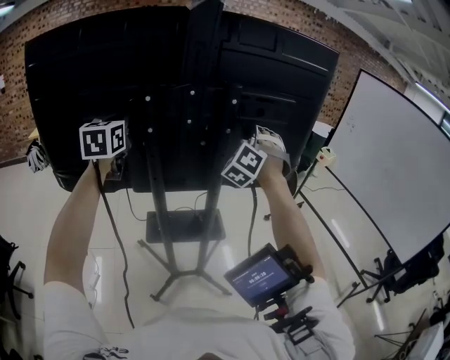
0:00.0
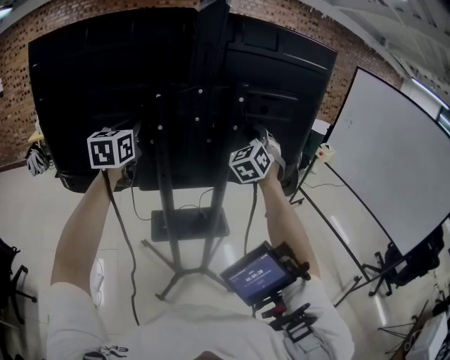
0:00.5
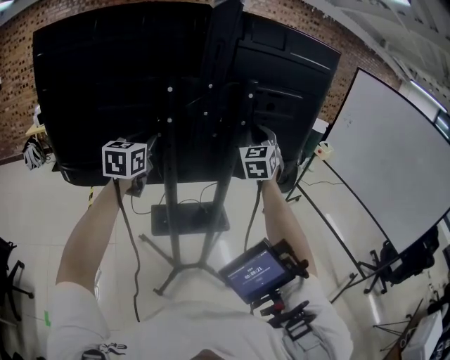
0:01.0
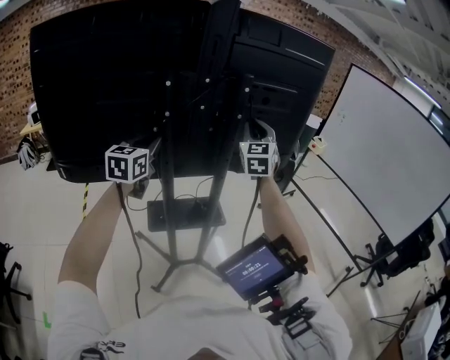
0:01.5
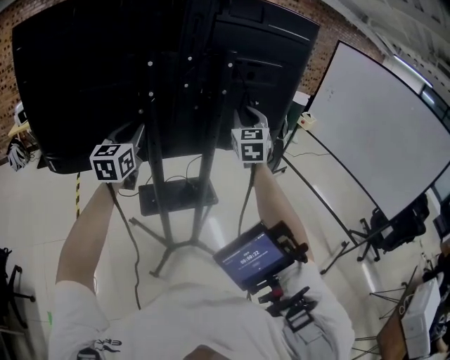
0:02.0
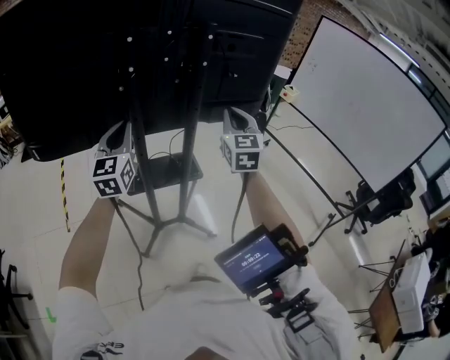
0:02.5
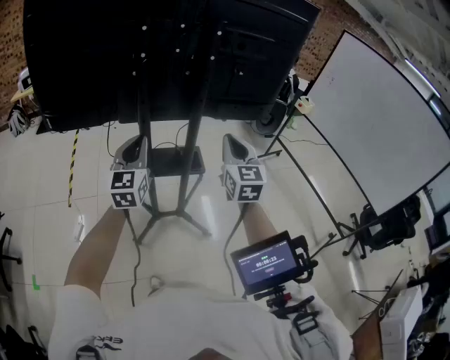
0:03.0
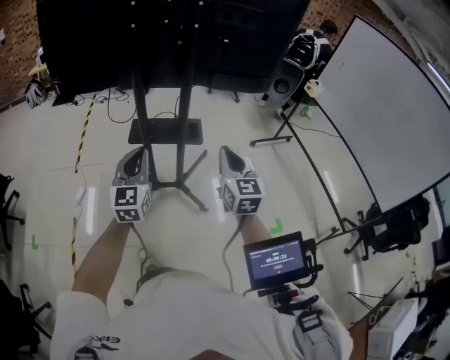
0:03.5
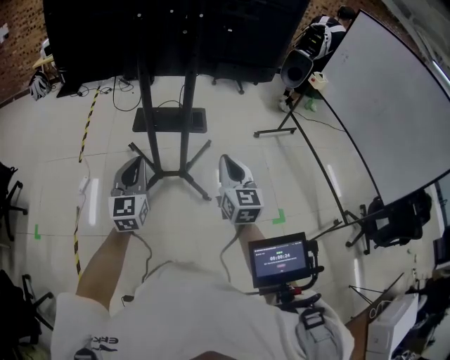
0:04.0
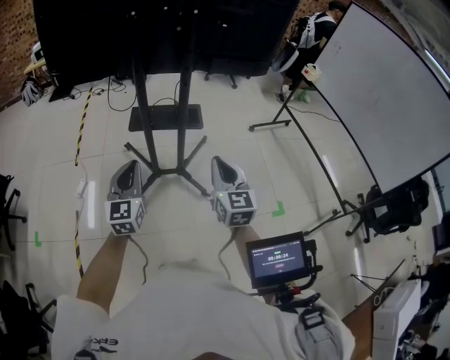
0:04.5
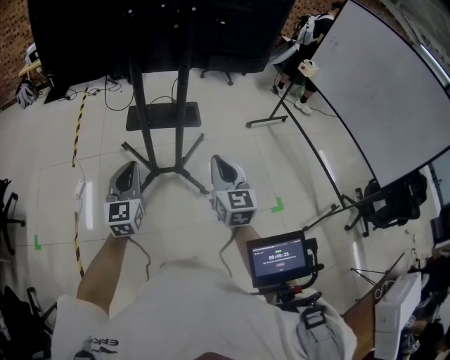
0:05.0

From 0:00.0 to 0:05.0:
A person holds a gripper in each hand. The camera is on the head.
From 0:00.0 to 0:02.5: The right gripper is displaced backward and downward by approximately 15 cm, and rolls clockwise, seen from behind, by approximately 60 degrees. Meanwhile the left gripper moves downward, backward and to the right, roughly 20 cm.
From 0:02.5 to 0:05.0: Both grippers travel together backward and downward, approximately 35 cm. The right gripper swivels about 30 degrees.

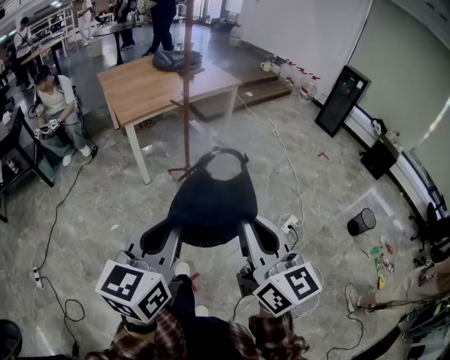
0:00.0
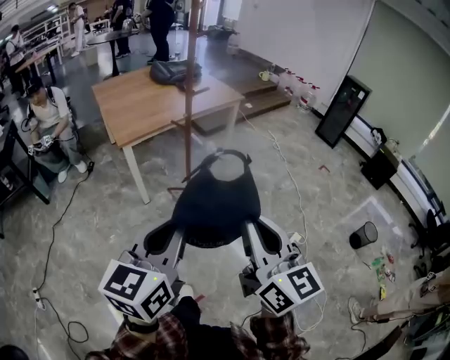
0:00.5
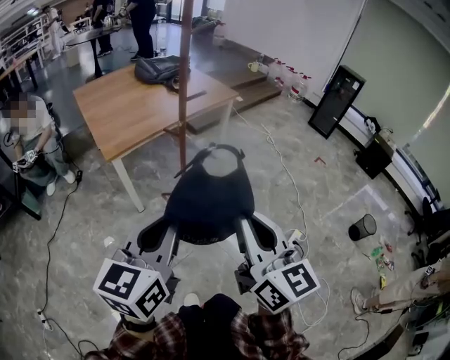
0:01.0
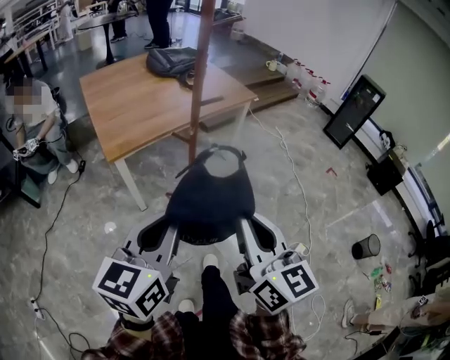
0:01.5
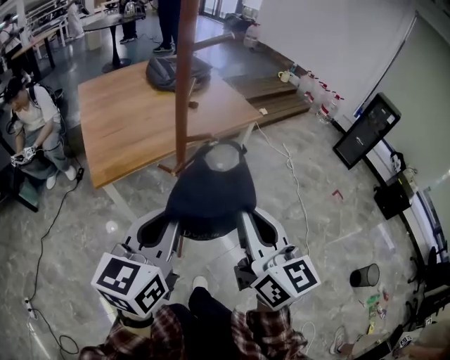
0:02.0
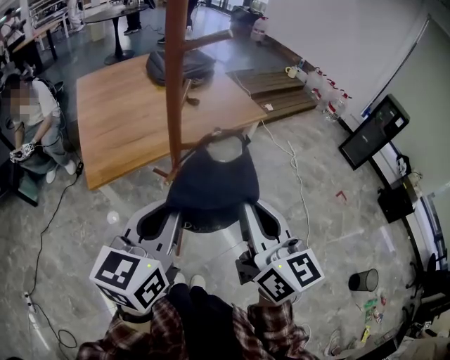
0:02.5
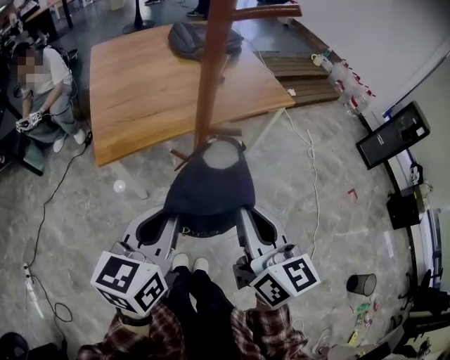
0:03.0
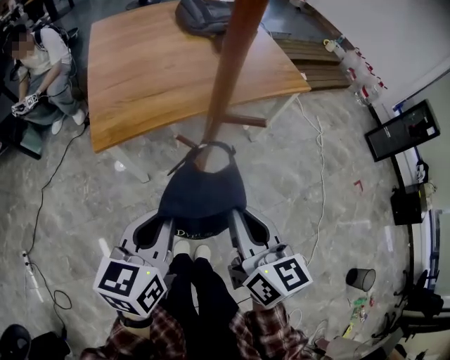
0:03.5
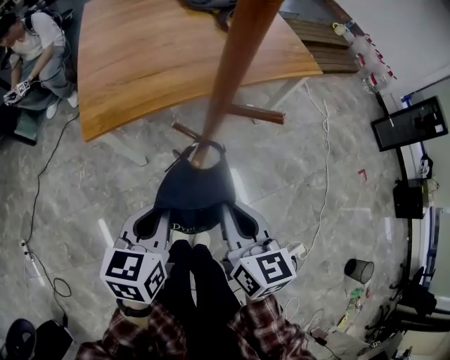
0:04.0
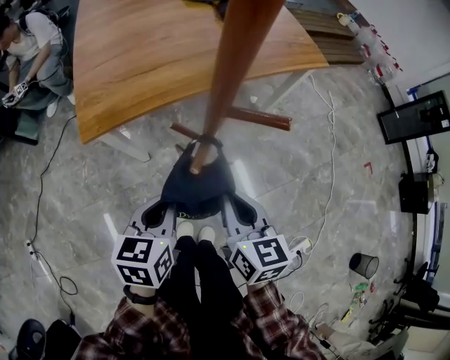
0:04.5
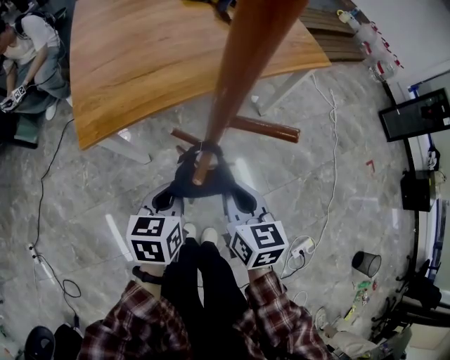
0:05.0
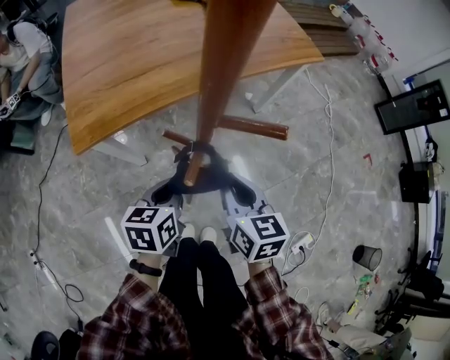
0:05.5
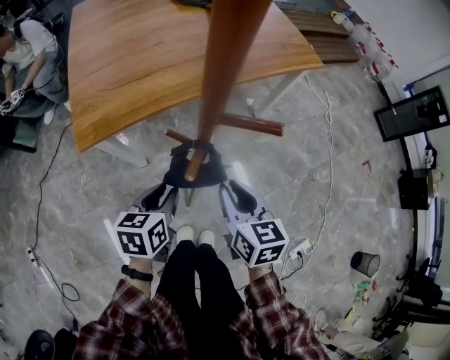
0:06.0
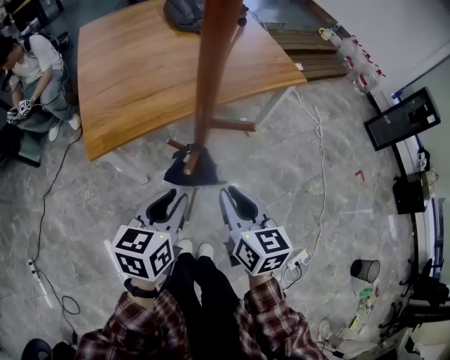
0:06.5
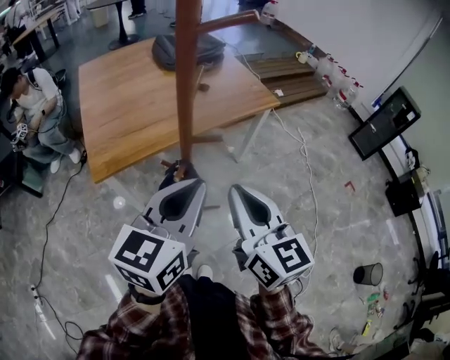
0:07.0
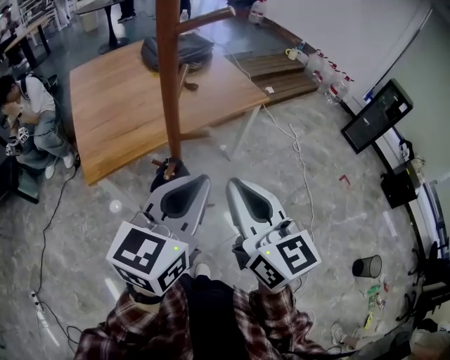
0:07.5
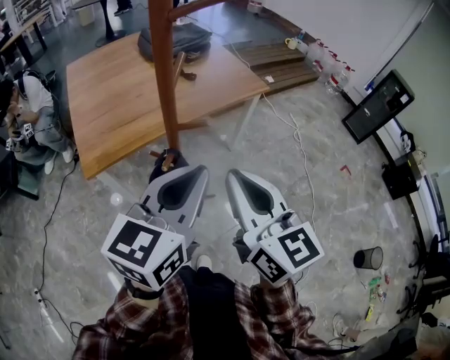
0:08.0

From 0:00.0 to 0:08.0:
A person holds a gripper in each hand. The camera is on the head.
From 0:00.0 to 0:02.0: Both grippers are carried forward, approximately 50 cm.
From 0:02.0 to 0:04.0: The two grippers go roughly 25 cm downward and forward. The left gripper swivels approximately 30 degrees. The right gripper changes its angle by roughly 30 degrees.
From 0:04.0 to 0:06.0: The grippers both shift downward and forward by some 10 cm. The left gripper opens up.
From 0:06.0 to 0:08.0: The right gripper travels upward by roughly 30 cm, and rotates some 30 degrees. The left gripper heads upward and to the right, covering approximately 35 cm, tips its fingers upward by approximately 30 degrees, and closes its fingers.

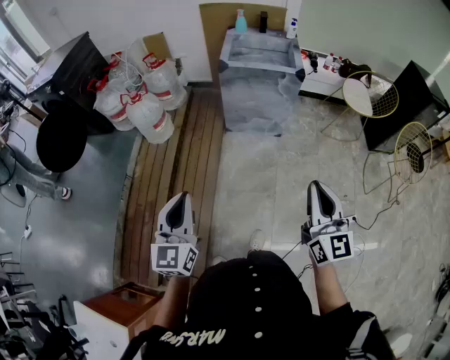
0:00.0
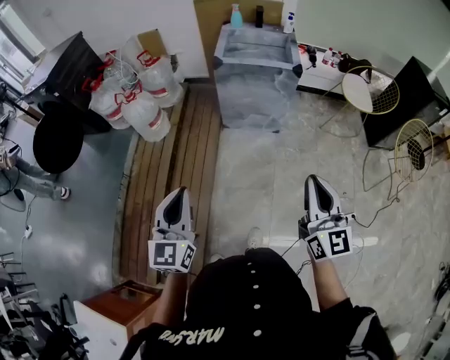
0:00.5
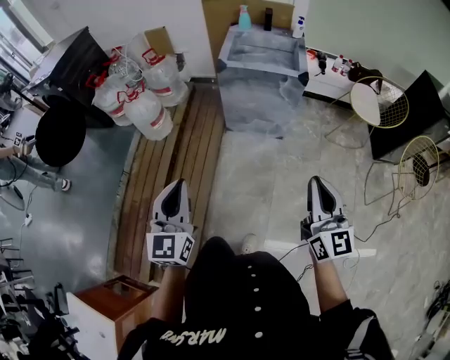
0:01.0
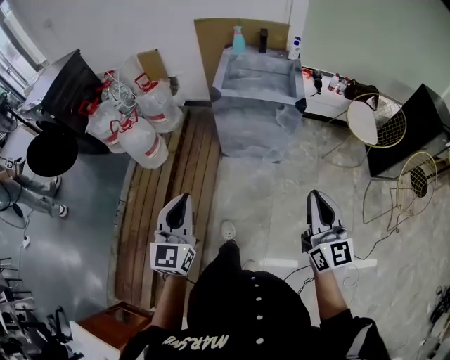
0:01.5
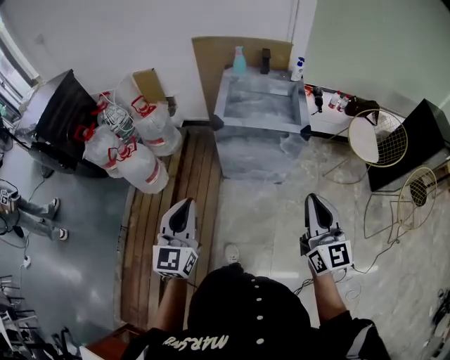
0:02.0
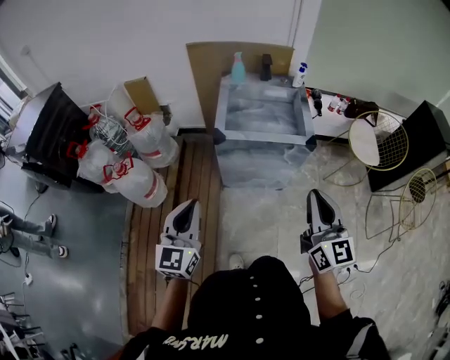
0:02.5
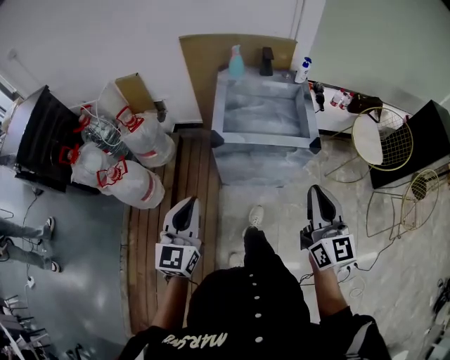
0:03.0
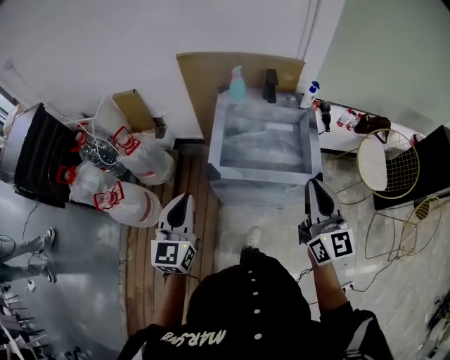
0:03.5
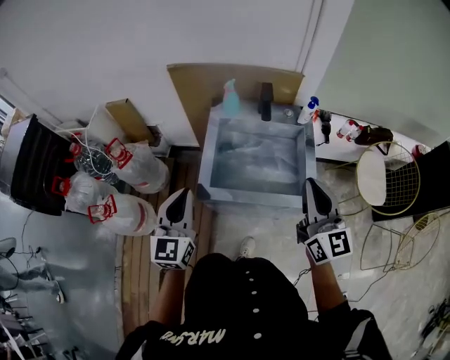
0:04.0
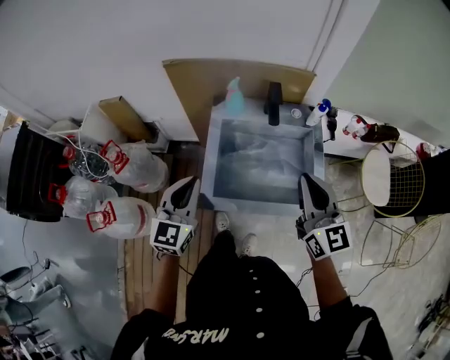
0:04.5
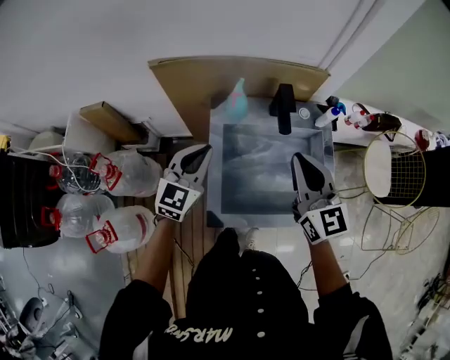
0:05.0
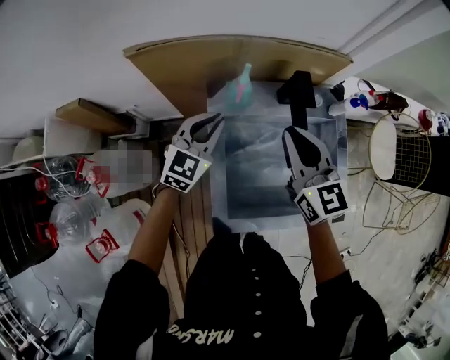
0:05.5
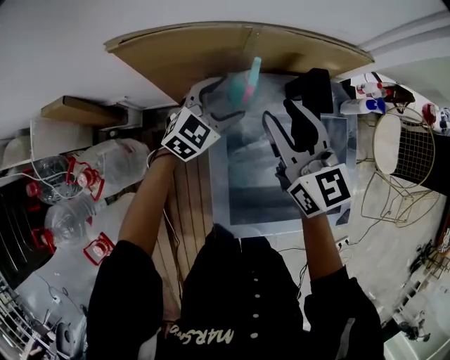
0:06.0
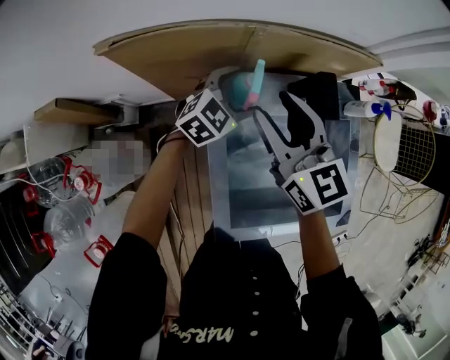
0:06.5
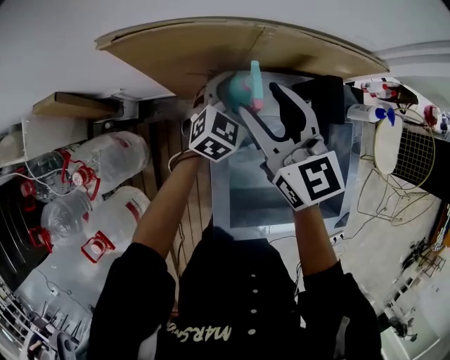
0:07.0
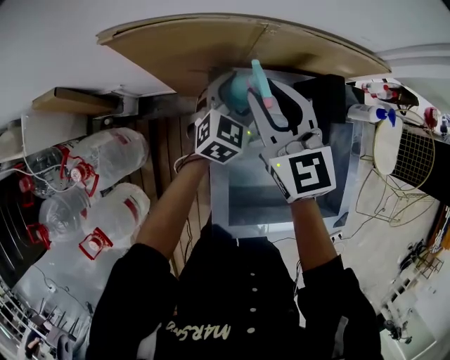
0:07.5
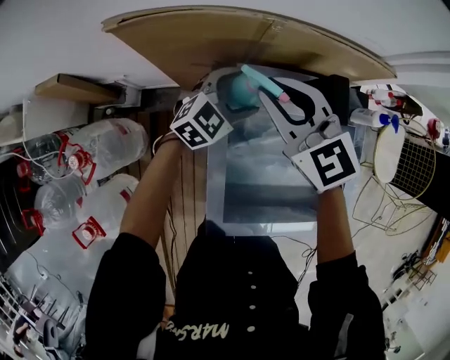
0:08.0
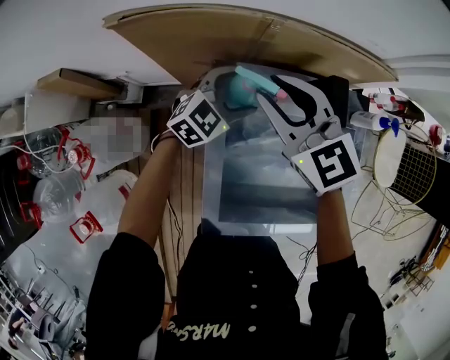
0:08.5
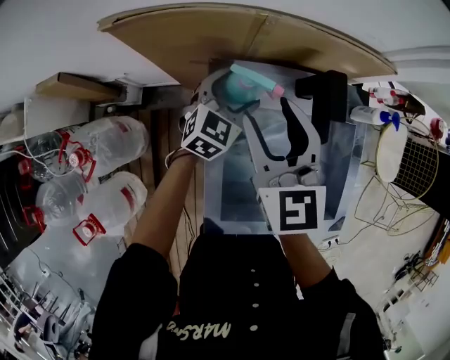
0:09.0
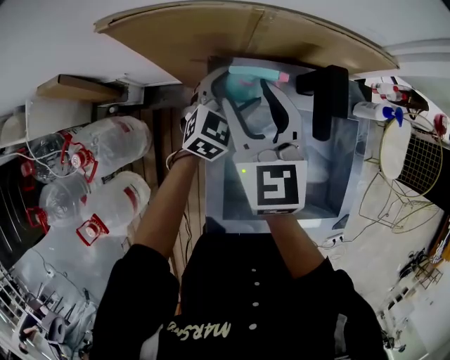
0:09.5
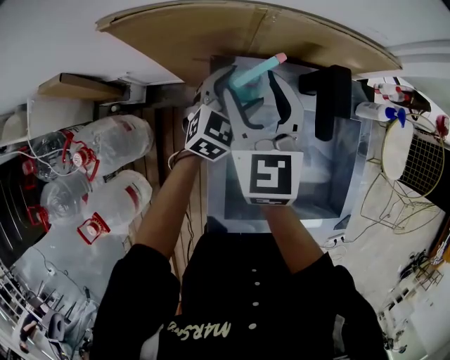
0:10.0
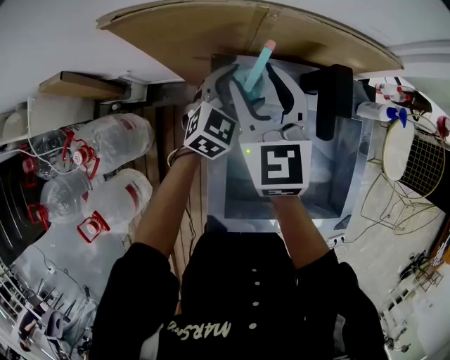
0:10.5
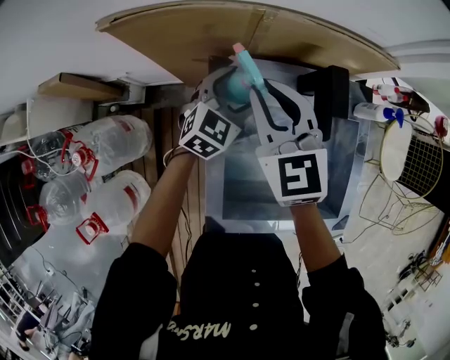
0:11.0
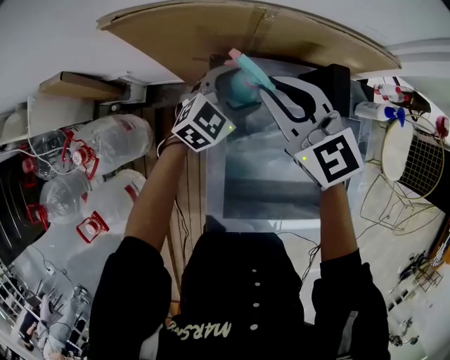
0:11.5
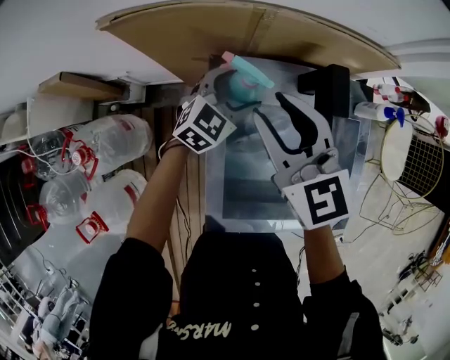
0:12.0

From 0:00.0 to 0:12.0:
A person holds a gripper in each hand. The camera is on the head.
From 0:00.0 to 0:02.0: Both grippers move forward, approximately 30 cm.
From 0:02.0 to 0:04.0: Both grippers are carried forward, about 40 cm.
From 0:04.0 to 0:06.0: The pair of grippers is taken forward, some 40 cm. The right gripper goes roughly 15 cm downward, and opens, while the left gripper shifts approximately 25 cm downward, rotates some 50 degrees, and opens.
From 0:06.0 to 0:08.0: The right gripper is displaced to the left by some 5 cm, and changes its angle by about 30 degrees.
From 0:08.0 to 0:10.0: The right gripper swivels roughly 30 degrees, and opens.
From 0:10.0 to 0:12.0: The right gripper shifts by approximately 5 cm.

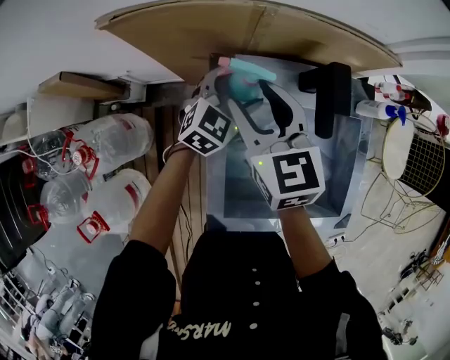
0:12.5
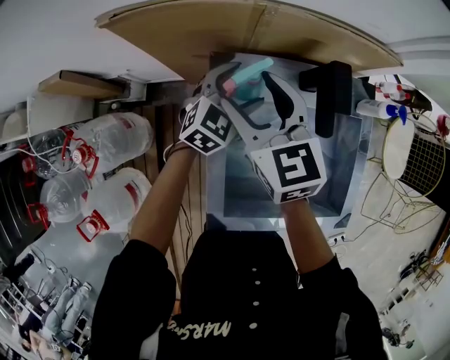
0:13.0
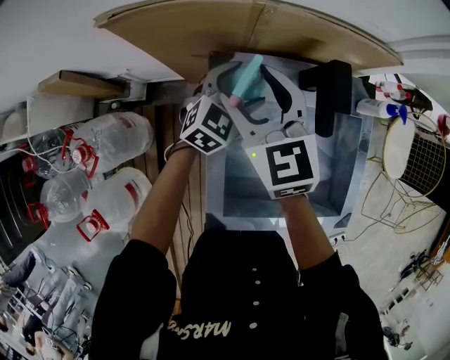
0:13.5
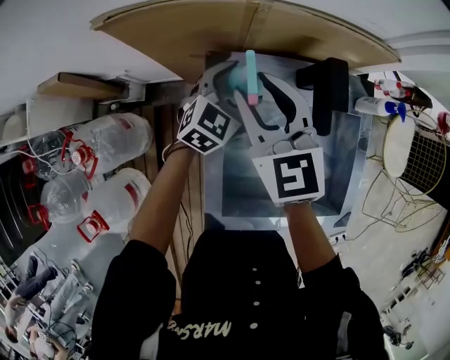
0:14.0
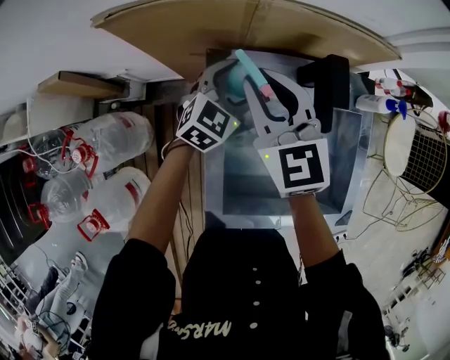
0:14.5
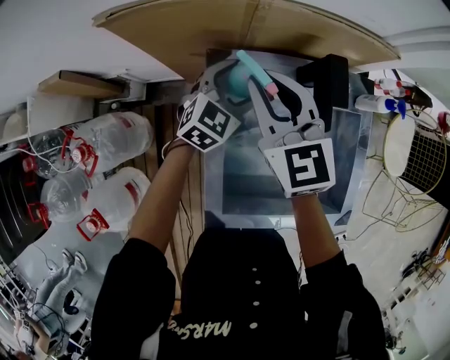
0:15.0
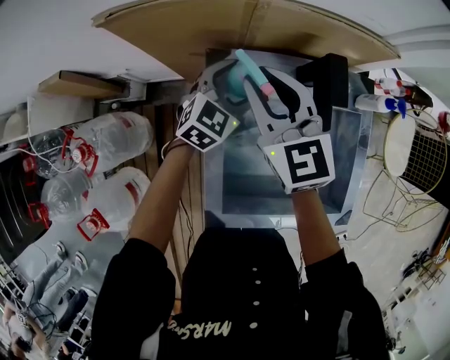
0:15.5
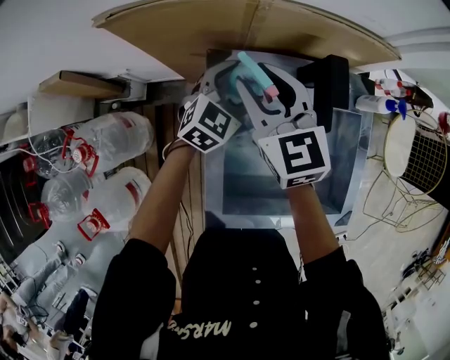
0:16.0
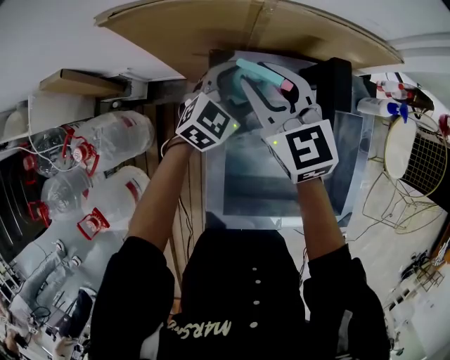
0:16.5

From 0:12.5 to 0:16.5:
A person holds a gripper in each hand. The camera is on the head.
From 0:12.5 to 0:14.5: The right gripper closes its fingers.
From 0:14.5 to 0:16.5: The grippers stay close to where they were, moving slightly.
